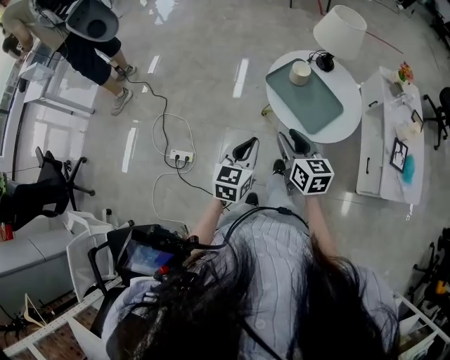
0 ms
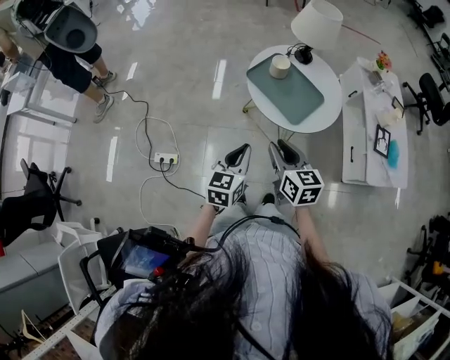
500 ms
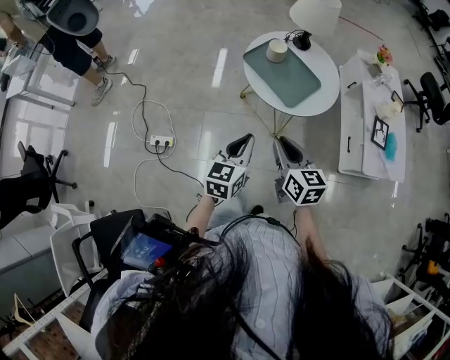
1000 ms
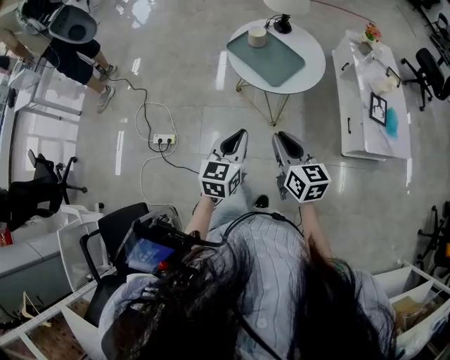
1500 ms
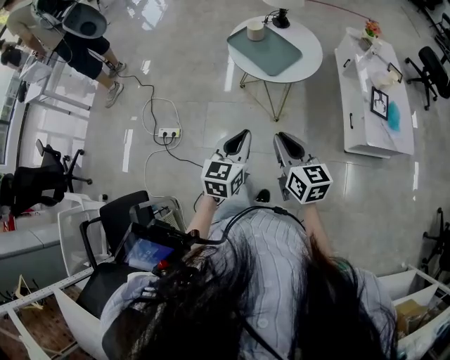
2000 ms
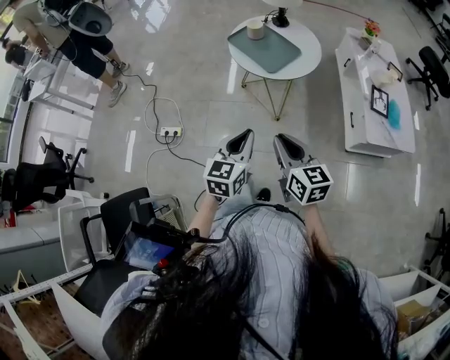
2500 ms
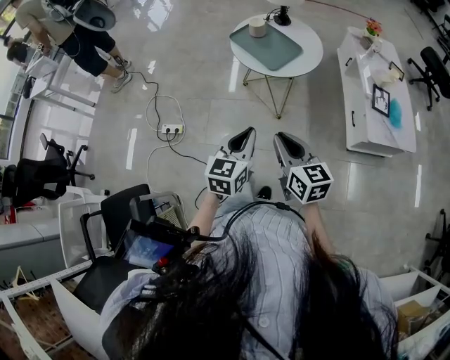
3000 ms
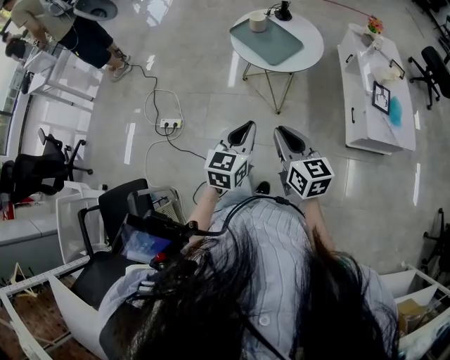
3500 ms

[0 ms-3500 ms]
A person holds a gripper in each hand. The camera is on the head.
0 ms to 2000 ms: The two grippers go some 30 cm backward and to the right.
2000 ms to 3500 ms: The grippers move only a little.

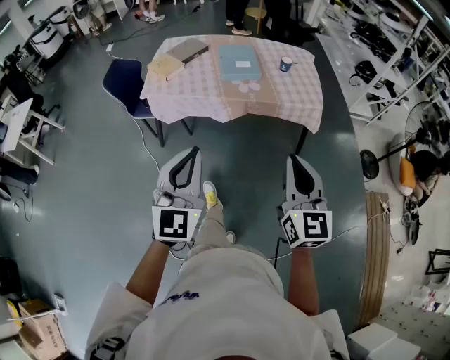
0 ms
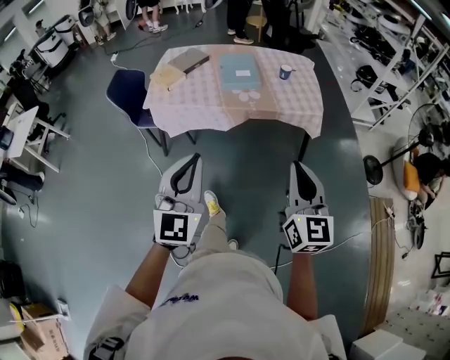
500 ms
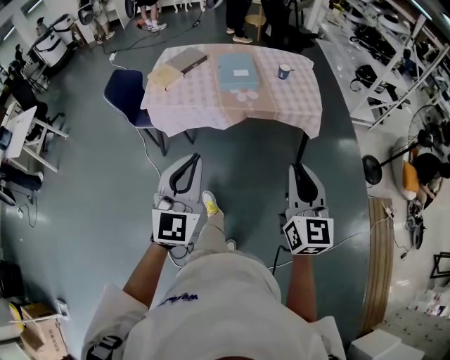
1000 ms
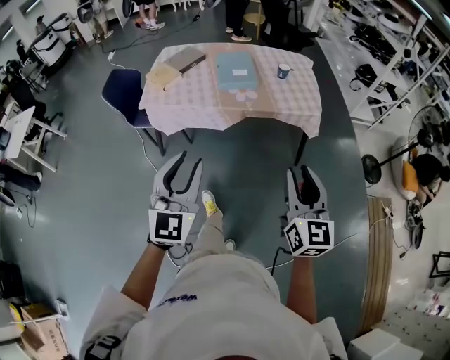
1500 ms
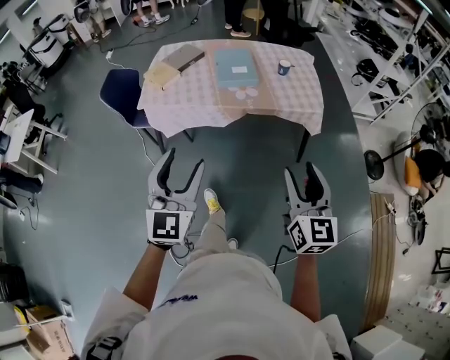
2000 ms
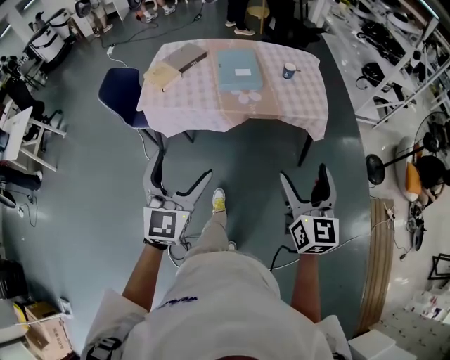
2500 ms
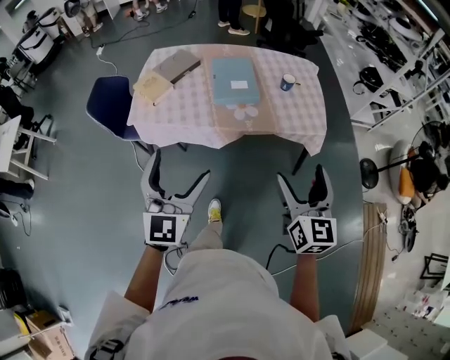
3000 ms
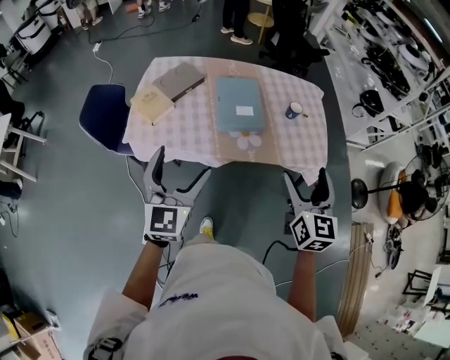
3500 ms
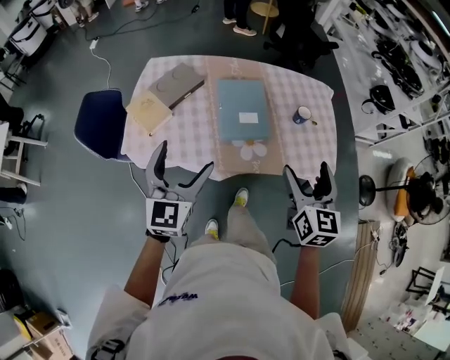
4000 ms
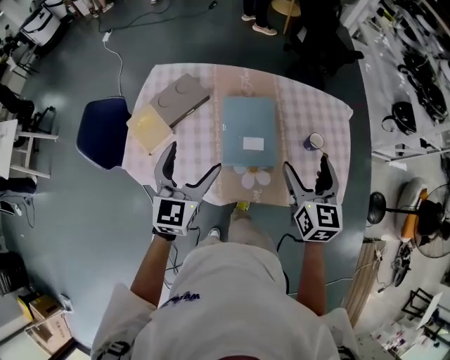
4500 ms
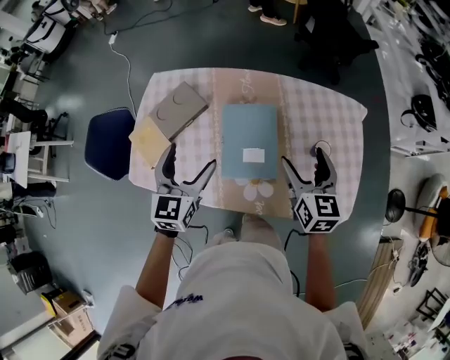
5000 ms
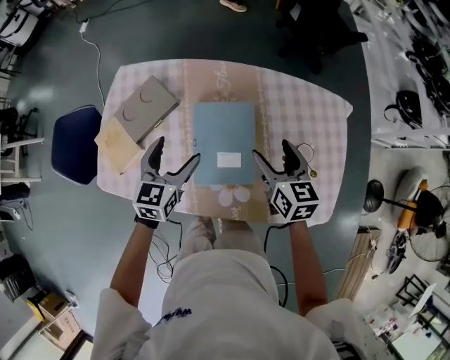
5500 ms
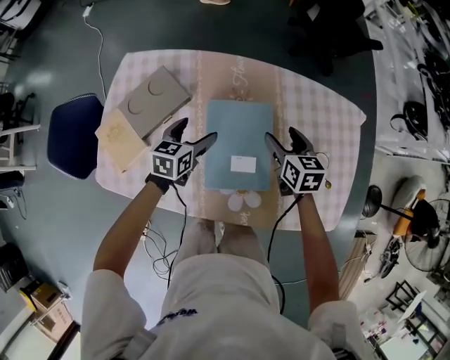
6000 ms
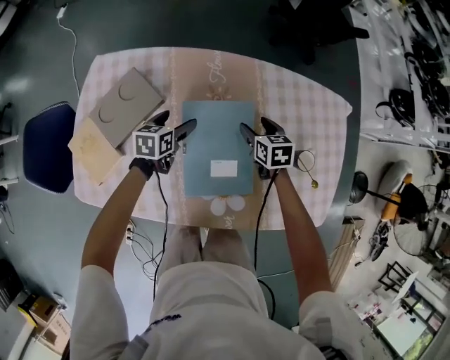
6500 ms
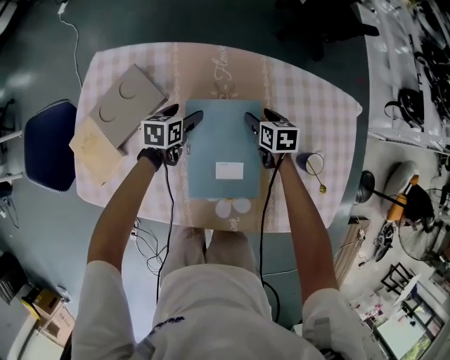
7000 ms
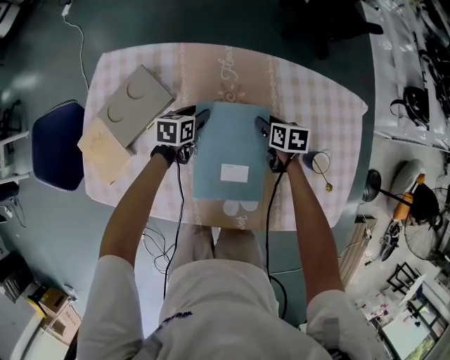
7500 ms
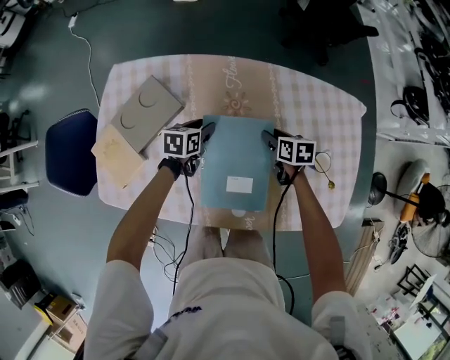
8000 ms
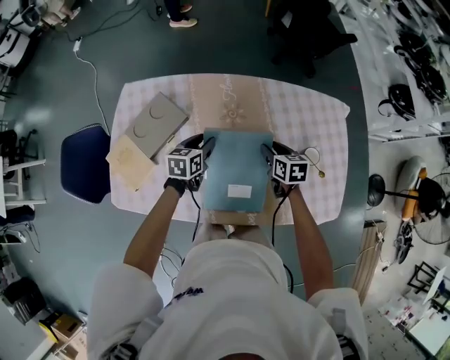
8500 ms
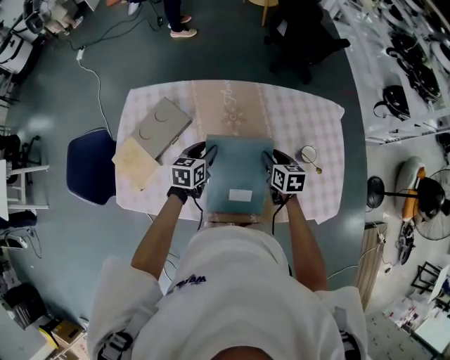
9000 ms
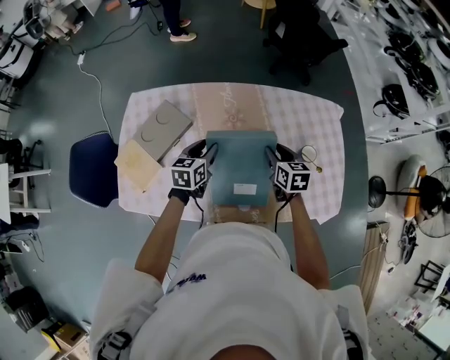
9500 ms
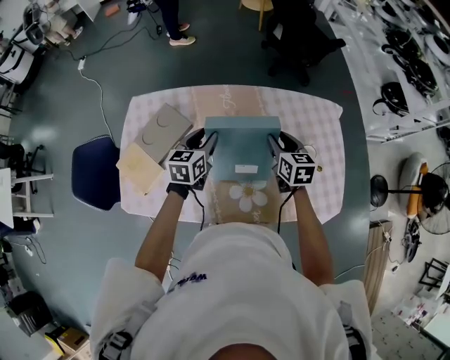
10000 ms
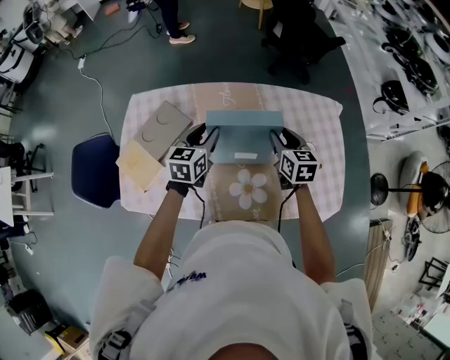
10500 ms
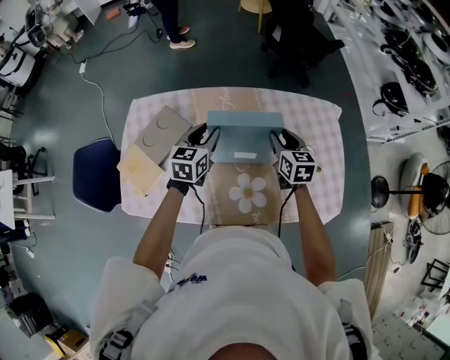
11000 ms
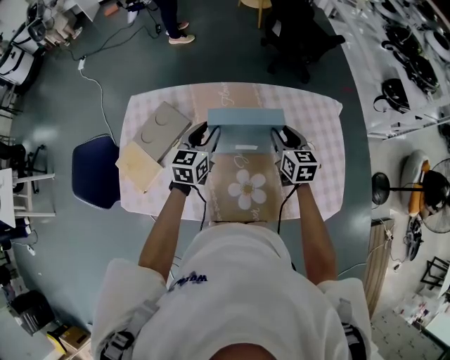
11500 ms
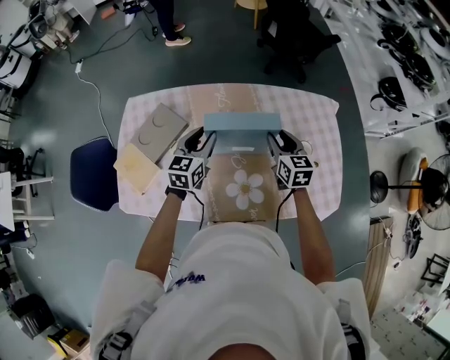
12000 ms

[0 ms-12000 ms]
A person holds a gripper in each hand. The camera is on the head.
0 ms to 2000 ms: The right gripper goes roughly 5 cm to the right, and opens its fingers, while the left gripper changes place by roughly 5 cm, and opens its fingers.
2000 ms to 4000 ms: The pair of grippers is taken forward, roughly 40 cm. The left gripper opens. The right gripper opens.
4000 ms to 6000 ms: Both grippers move forward and downward, approximately 50 cm. The right gripper rotates approximately 30 degrees; the left gripper turns by roughly 40 degrees.
6000 ms to 8000 ms: The right gripper travels downward by approximately 10 cm, and turns by approximately 20 degrees. Meanwhile the left gripper is displaced downward and forward by some 10 cm, and closes.
8000 ms to 10000 ms: The two grippers go roughly 20 cm upward. The left gripper rotates about 20 degrees; the right gripper rotates roughly 30 degrees.
10000 ms to 12000 ms: The grippers stay close to where they were, moving slightly.

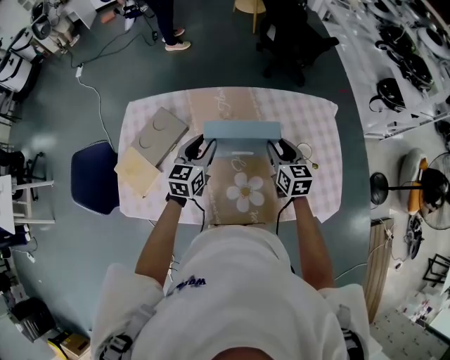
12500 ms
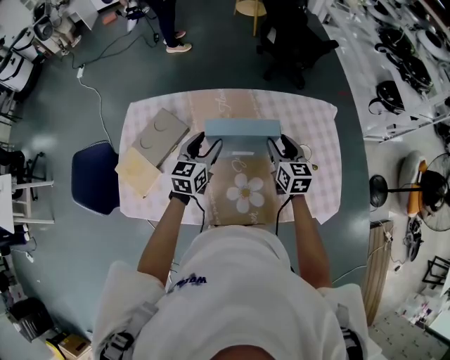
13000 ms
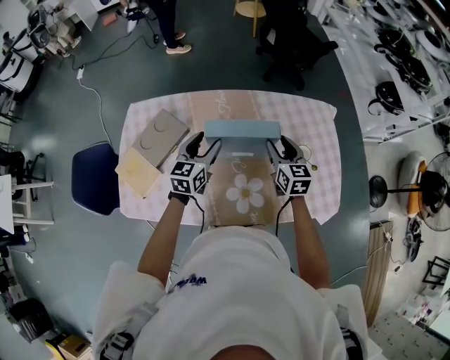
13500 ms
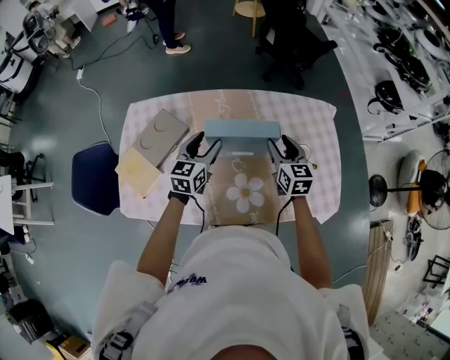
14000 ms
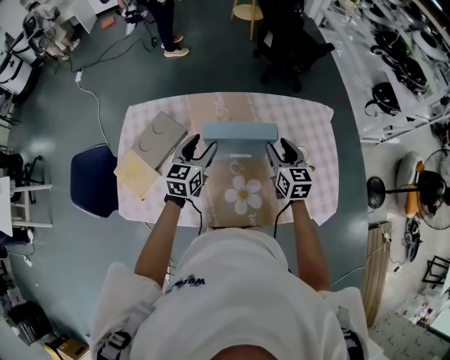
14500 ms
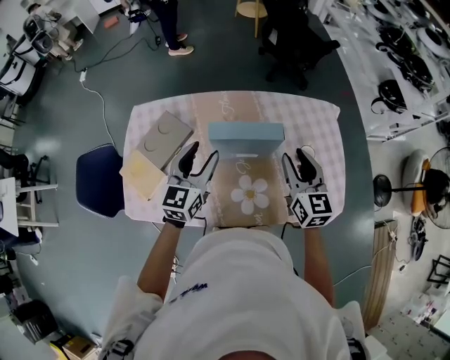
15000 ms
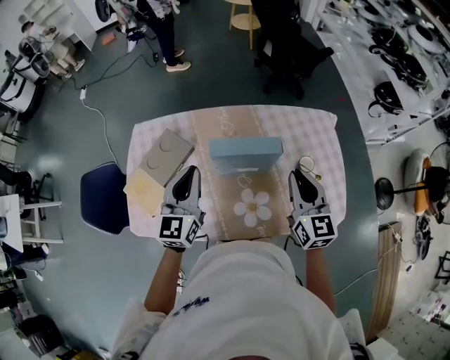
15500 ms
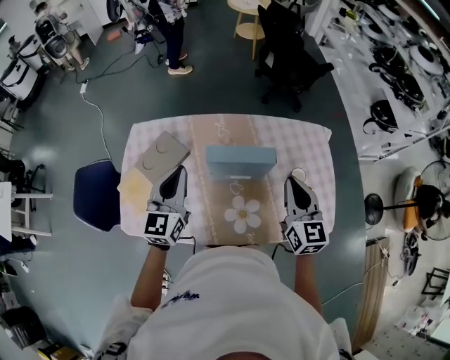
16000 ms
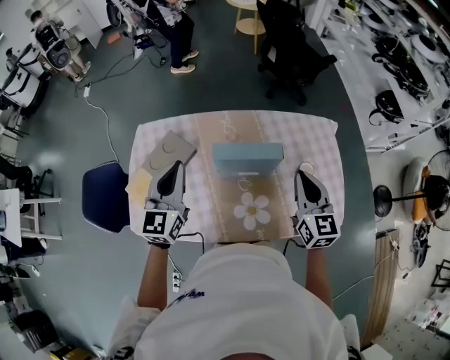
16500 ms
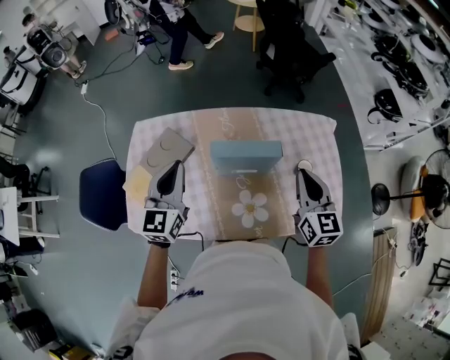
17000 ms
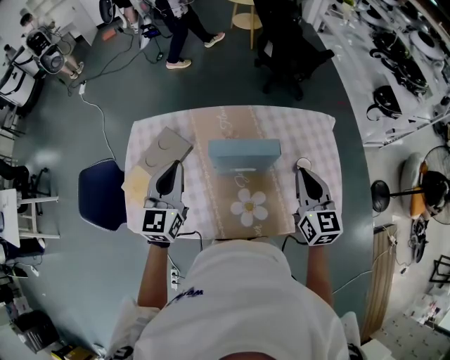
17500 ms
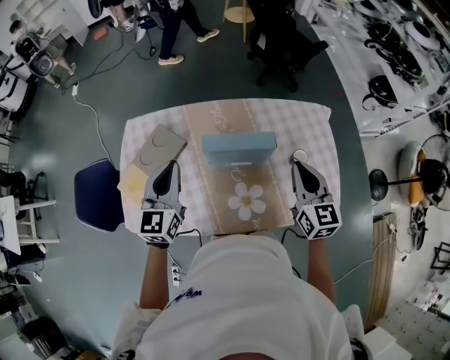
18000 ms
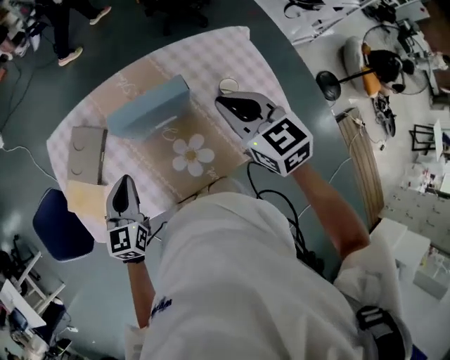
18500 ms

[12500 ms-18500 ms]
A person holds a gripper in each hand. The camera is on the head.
12500 ms to 14500 ms: The grippers move only a little.
14500 ms to 16500 ms: The left gripper travels upward and to the left by some 15 cm, and closes; the right gripper travels upward and backward by approximately 15 cm, and closes up.
16500 ms to 18500 ms: The left gripper heads downward and backward, covering some 15 cm.

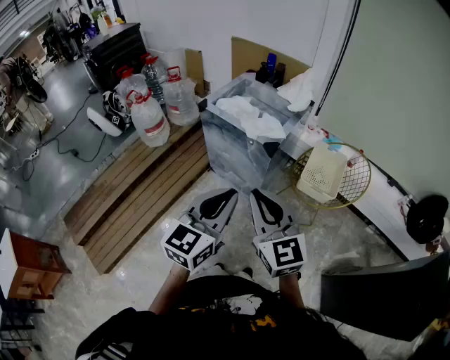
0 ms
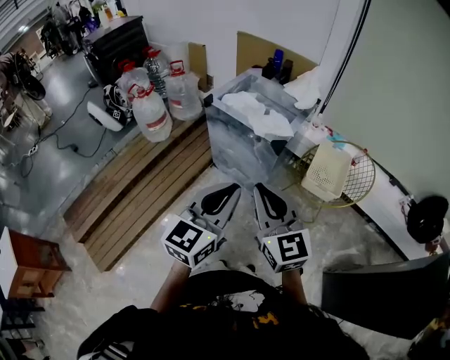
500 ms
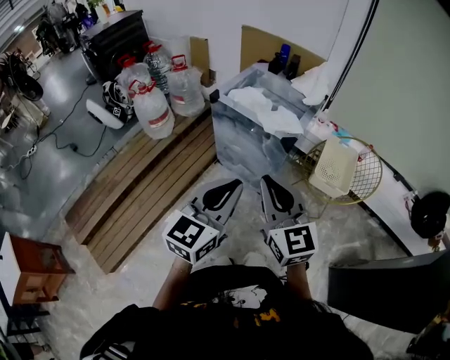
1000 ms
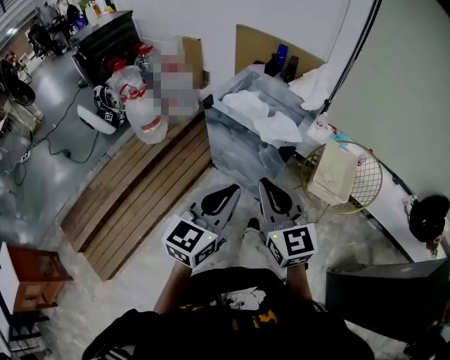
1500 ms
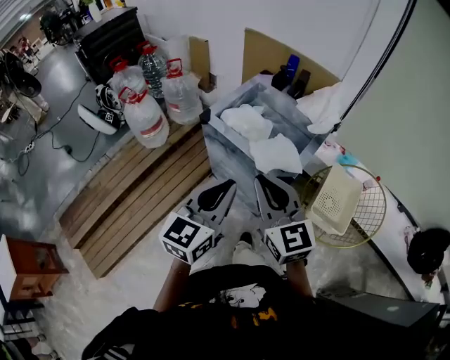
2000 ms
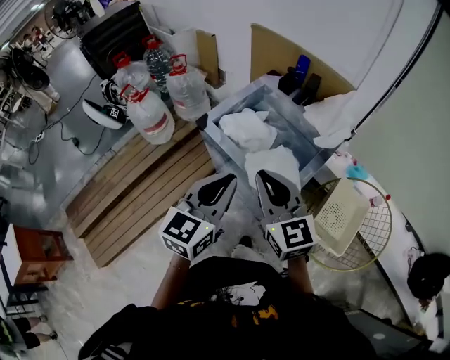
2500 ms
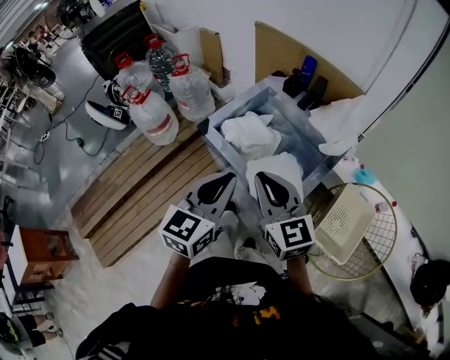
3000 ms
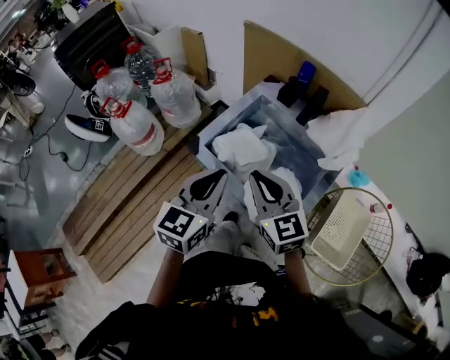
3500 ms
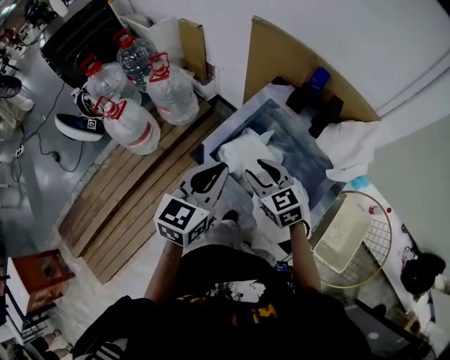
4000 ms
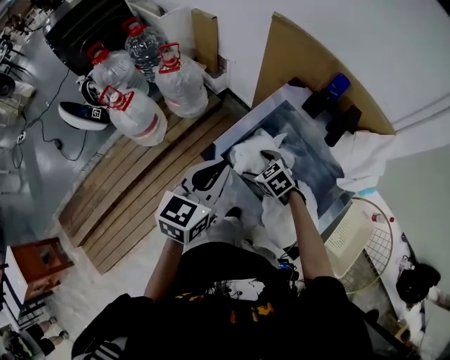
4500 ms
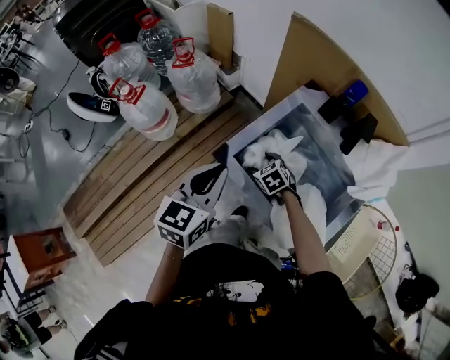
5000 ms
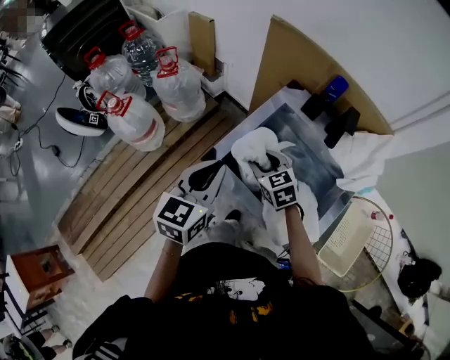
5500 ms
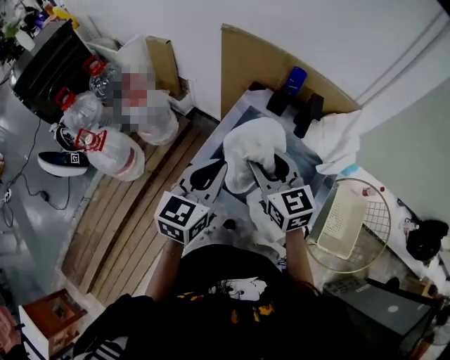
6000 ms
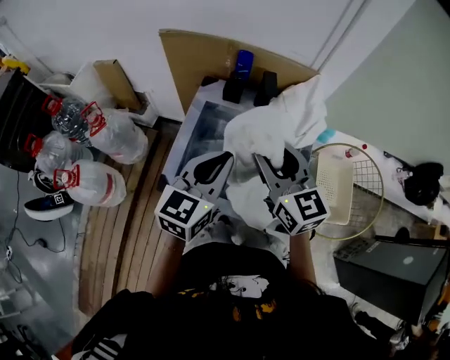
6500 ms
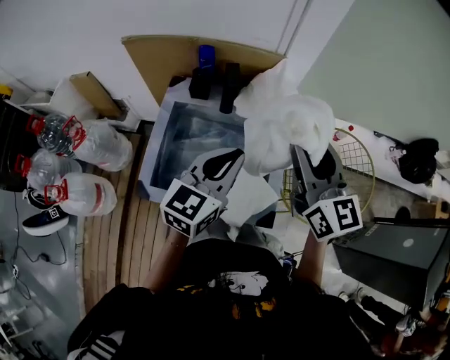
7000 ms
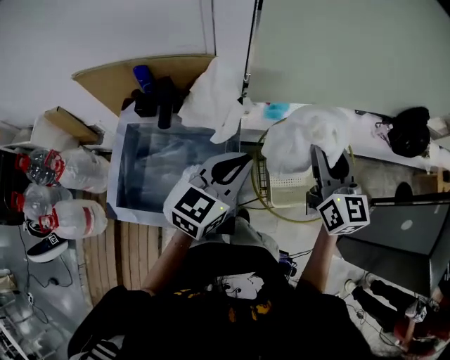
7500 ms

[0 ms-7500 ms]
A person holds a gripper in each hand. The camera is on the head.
0 ms to 2000 ms: Both grippers travel together forward, some 25 cm.
2000 ms to 4000 ms: The right gripper shifts some 40 cm forward and downward, changes its angle by approximately 30 degrees, and opens, while the left gripper shifts roughly 30 cm forward.
4000 ms to 5500 ms: The right gripper shifts approximately 5 cm forward, goes downward and returns, some 20 cm each way, and opens, then closes once more. The left gripper travels to the left by roughly 5 cm.
5500 ms to 7500 ms: The two grippers travel together, roughly 50 cm. The left gripper rotates roughly 50 degrees. The right gripper tips its fingers upward by about 30 degrees.
